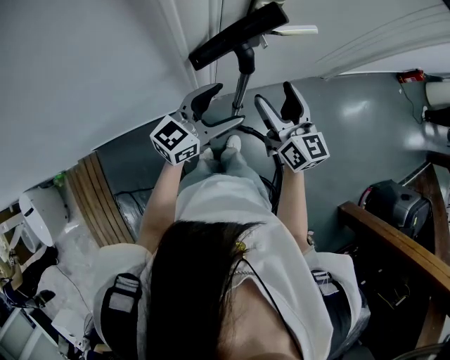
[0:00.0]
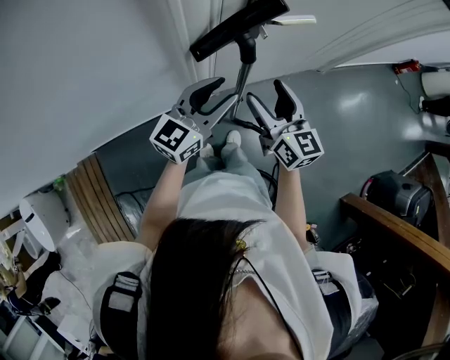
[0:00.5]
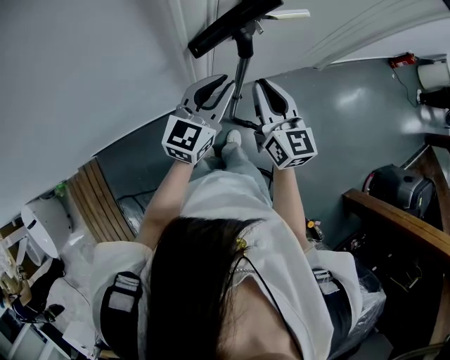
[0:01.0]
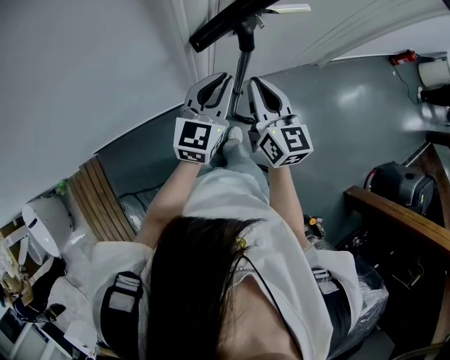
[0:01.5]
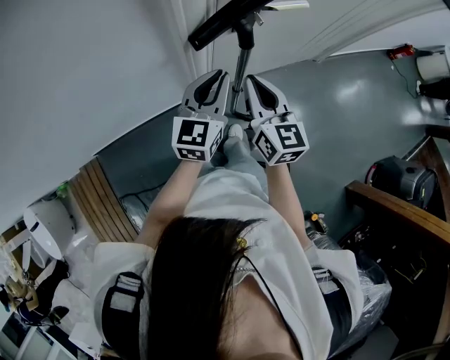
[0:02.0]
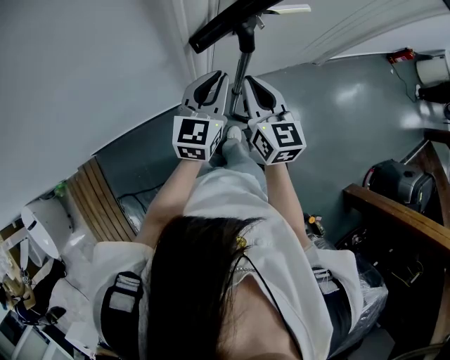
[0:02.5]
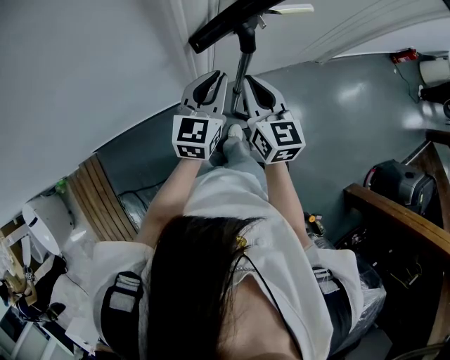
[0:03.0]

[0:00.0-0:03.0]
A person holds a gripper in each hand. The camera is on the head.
0:00.0 to 0:01.5: The right gripper is displaced backward by about 5 cm, and closes. Meanwhile the left gripper rotates approximately 30 degrees, and closes.
0:01.5 to 0:03.0: There are only small adjustments of the grippers.

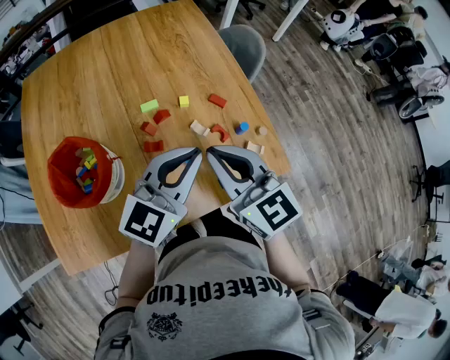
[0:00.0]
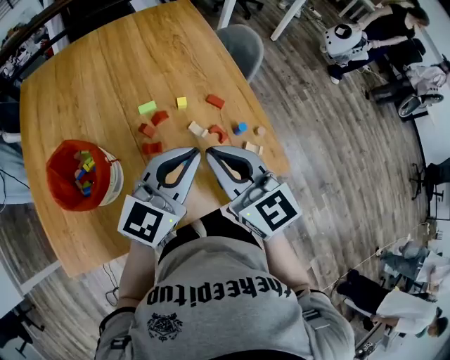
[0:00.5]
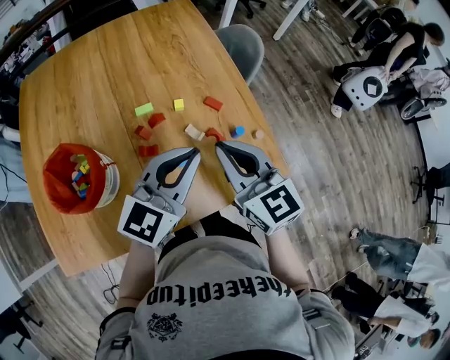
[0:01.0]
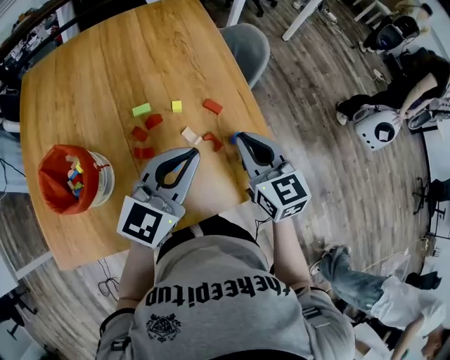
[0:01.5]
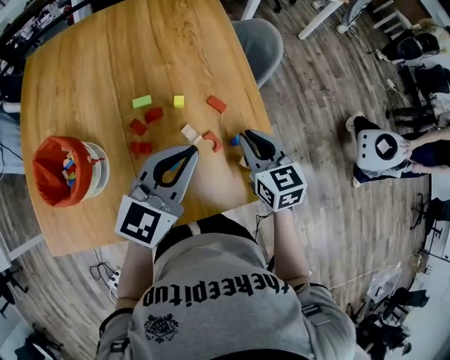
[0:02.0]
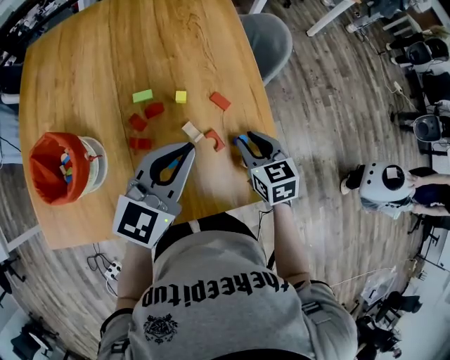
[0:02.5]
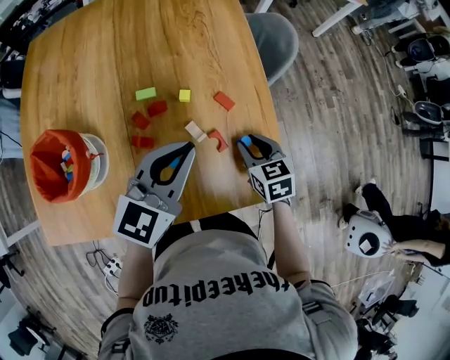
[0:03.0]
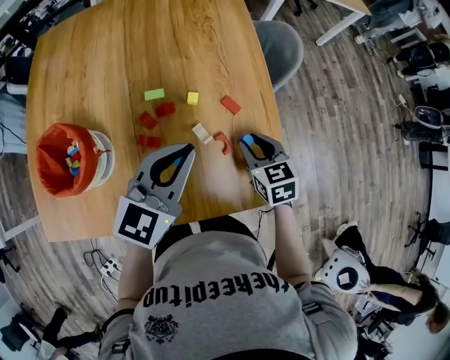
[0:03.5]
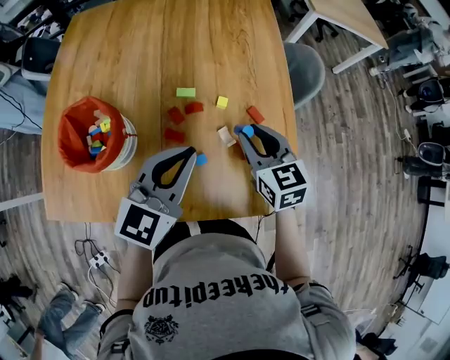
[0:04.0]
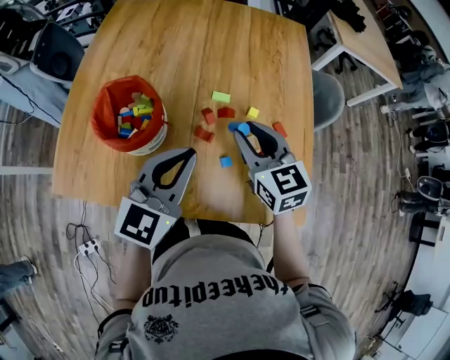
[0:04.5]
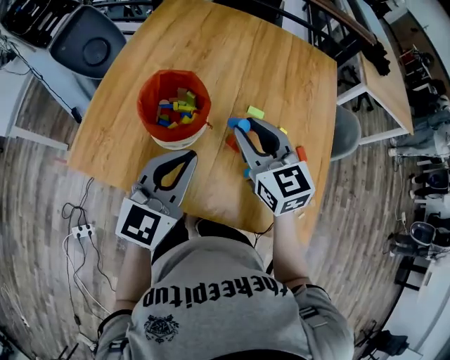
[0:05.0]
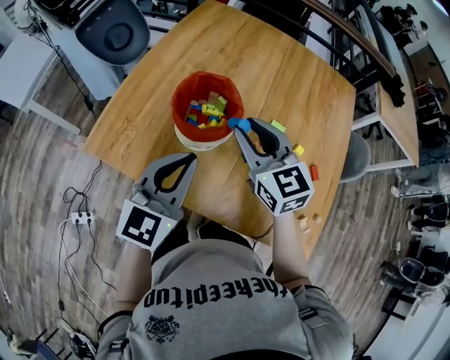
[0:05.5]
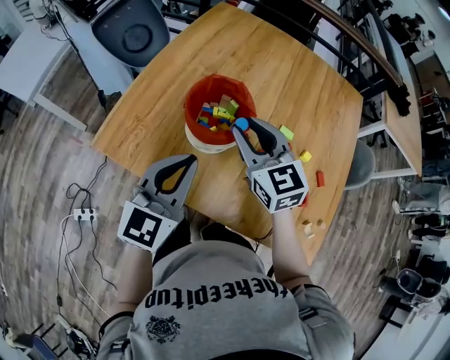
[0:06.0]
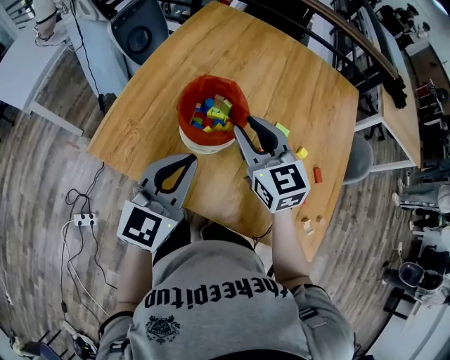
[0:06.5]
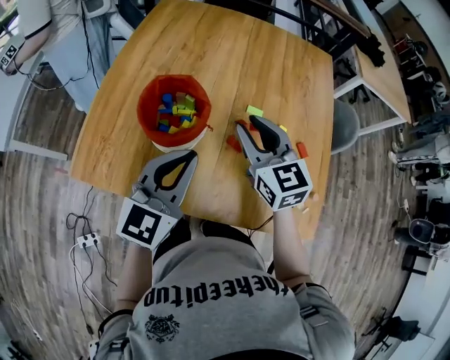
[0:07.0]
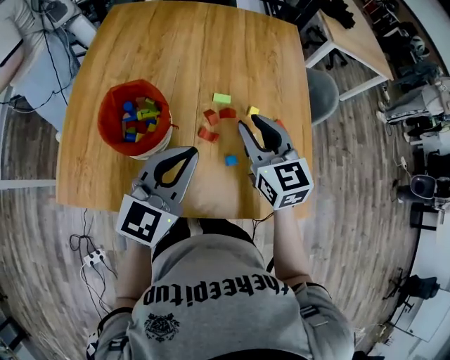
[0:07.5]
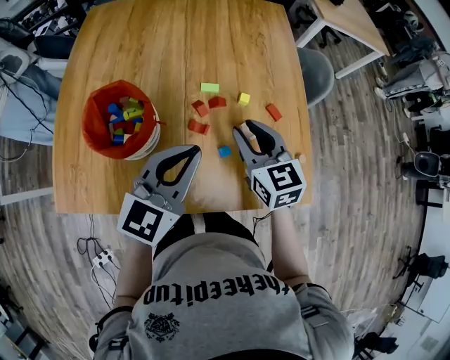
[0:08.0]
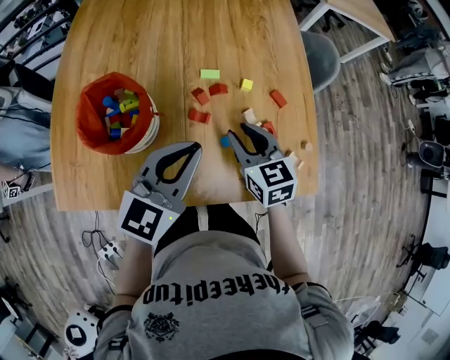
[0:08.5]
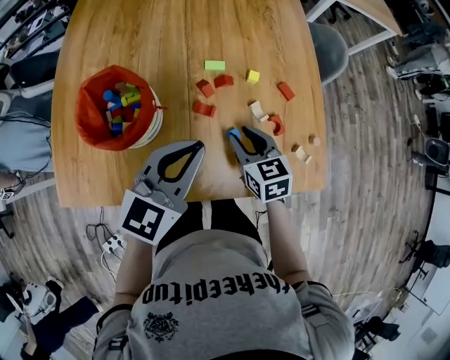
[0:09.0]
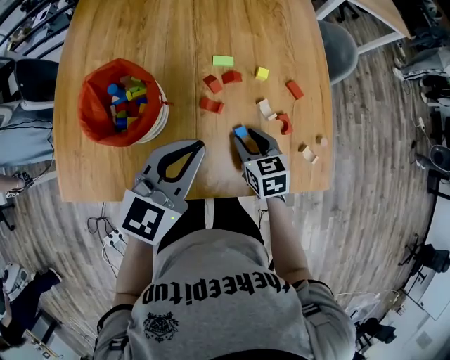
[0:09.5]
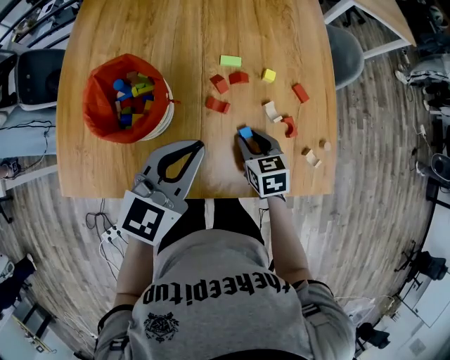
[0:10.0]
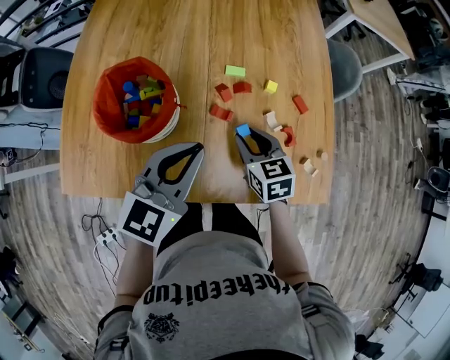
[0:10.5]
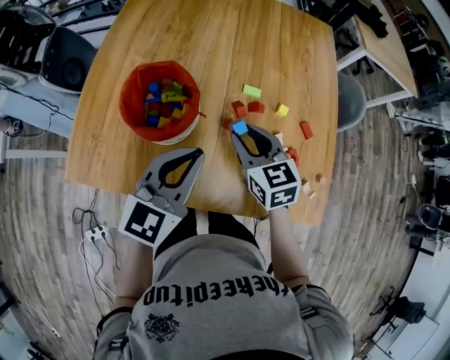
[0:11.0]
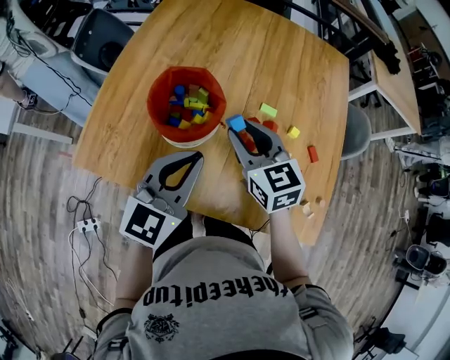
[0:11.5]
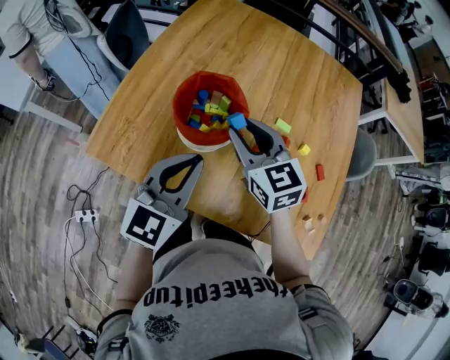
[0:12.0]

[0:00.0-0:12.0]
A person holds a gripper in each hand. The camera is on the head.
0:00.0 to 0:02.0: The left gripper moves forward, approximately 5 cm; the right gripper goes some 20 cm to the right, downward and forward.
0:02.0 to 0:04.0: Both grippers travel together to the left, about 10 cm. The right gripper goes downward and returns, roughly 10 cm each way.
0:04.0 to 0:06.0: The left gripper changes place by about 25 cm, and turns by approximately 30 degrees. Meanwhile the right gripper ends up some 35 cm from where it was, and changes its angle by about 40 degrees.
0:06.0 to 0:08.0: The right gripper ends up about 25 cm from where it was, and swivels roughly 30 degrees; the left gripper moves about 20 cm, and rotates approximately 30 degrees.
0:08.0 to 0:10.0: The right gripper heads downward, covering some 20 cm, and swivels some 30 degrees; the left gripper moves some 5 cm.
0:10.0 to 0:12.0: The right gripper moves roughly 30 cm, and turns by roughly 40 degrees; the left gripper changes place by some 15 cm, and changes its angle by some 30 degrees.

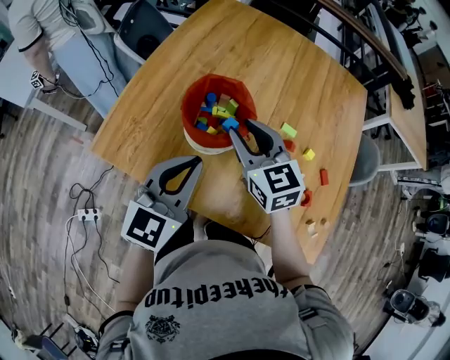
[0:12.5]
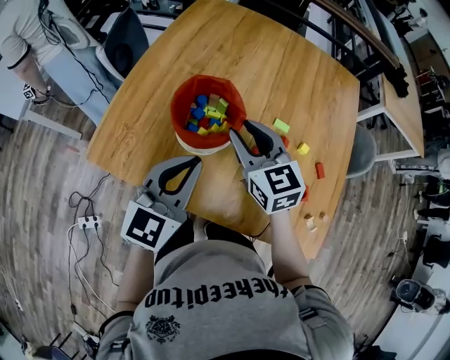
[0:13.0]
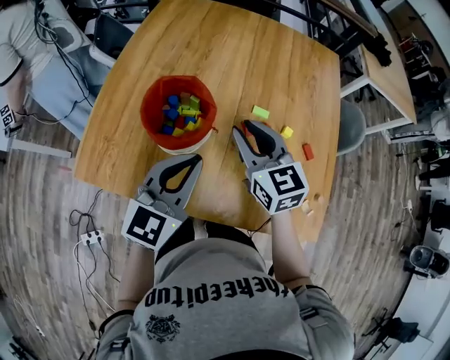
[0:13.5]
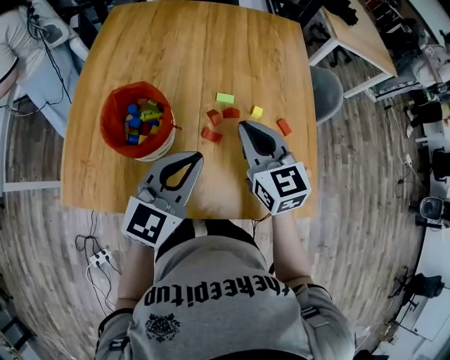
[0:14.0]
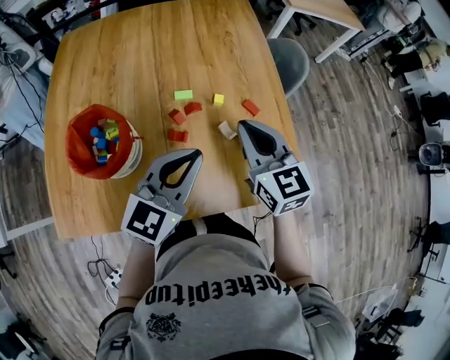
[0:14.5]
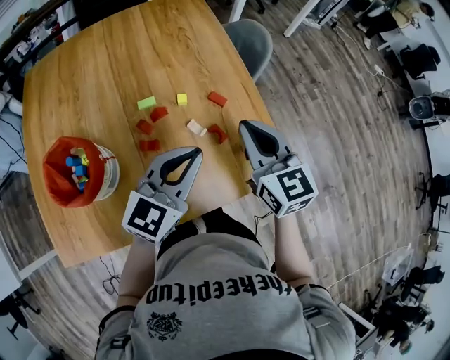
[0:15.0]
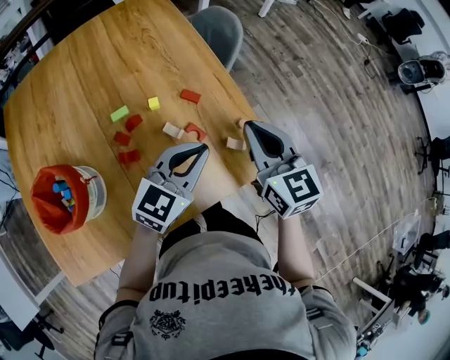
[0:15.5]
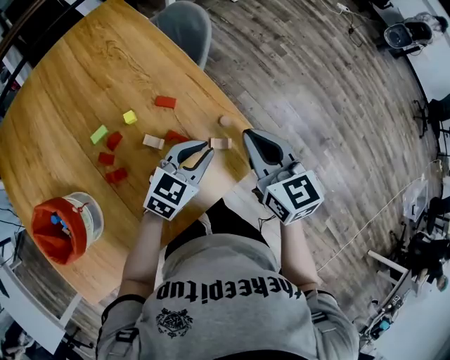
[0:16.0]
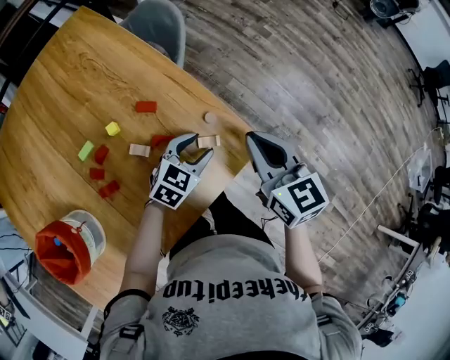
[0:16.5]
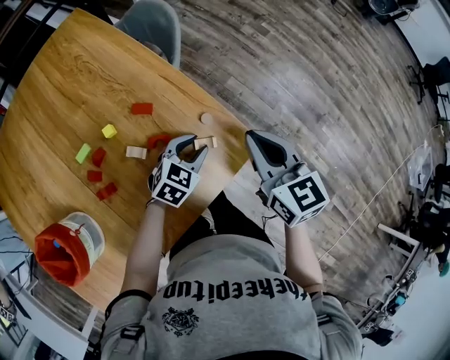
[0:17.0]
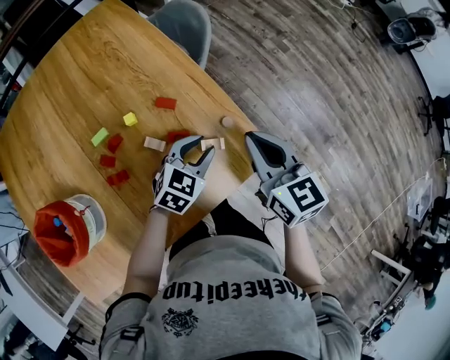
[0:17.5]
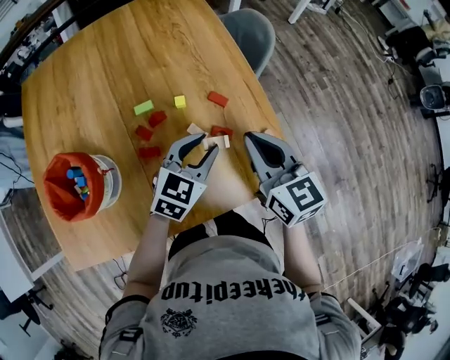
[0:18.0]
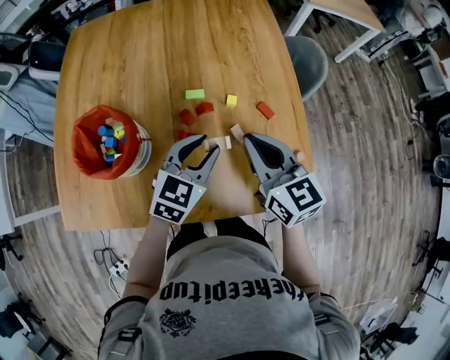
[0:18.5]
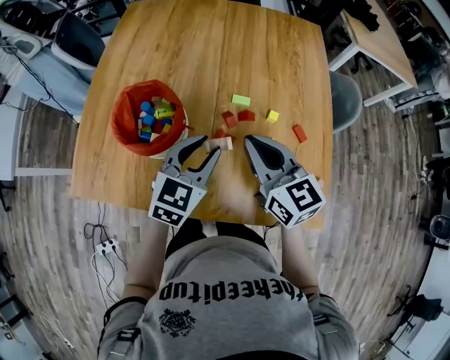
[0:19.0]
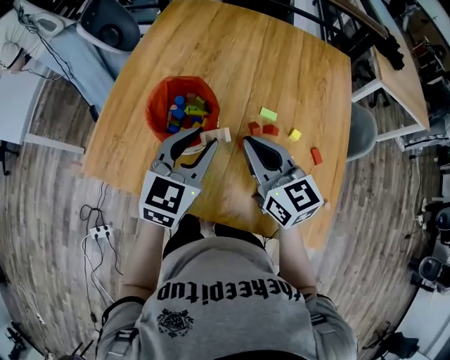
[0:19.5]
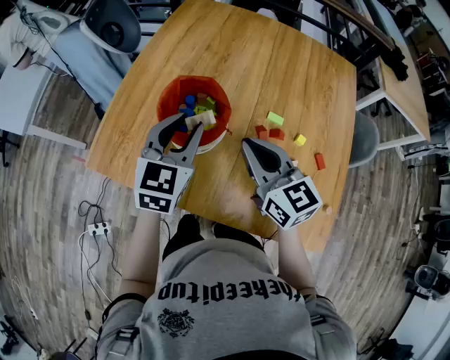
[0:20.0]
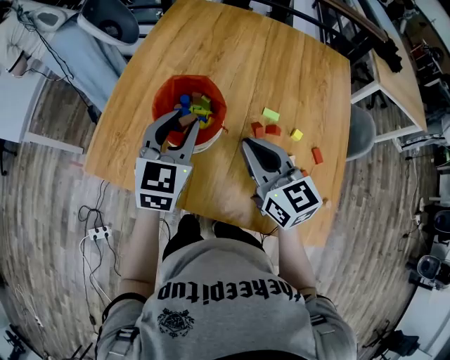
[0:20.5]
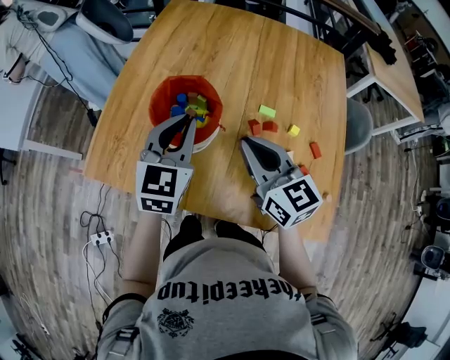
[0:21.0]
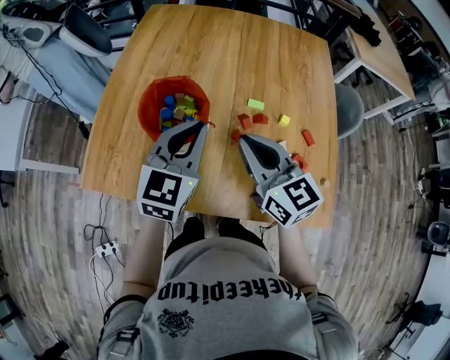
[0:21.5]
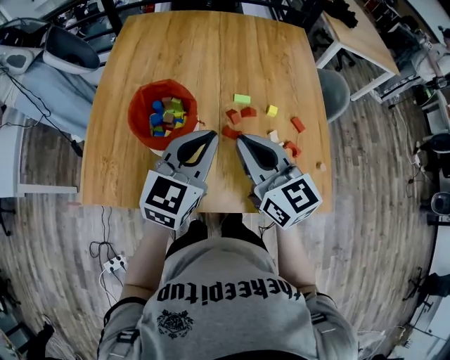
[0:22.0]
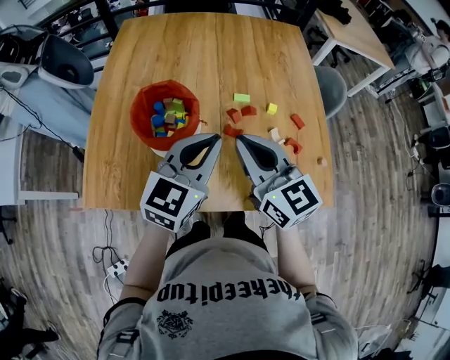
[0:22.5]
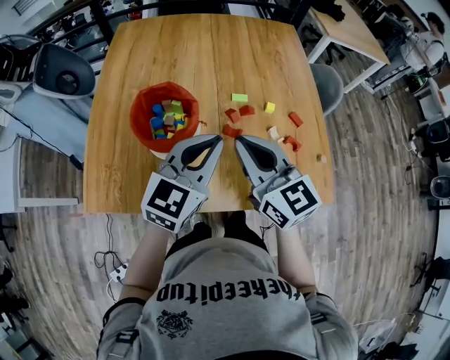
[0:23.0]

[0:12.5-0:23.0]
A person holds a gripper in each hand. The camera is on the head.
0:12.5 to 0:14.5: The right gripper ends up about 30 cm from where it was, changes its angle by some 40 degrees, and closes; the left gripper moves approximately 25 cm, and rotates roughly 40 degrees.
0:14.5 to 0:16.5: The left gripper changes place by roughly 35 cm, turns by approximately 50 degrees, and opens; the right gripper changes place by about 25 cm, and rotates some 40 degrees.
0:16.5 to 0:19.0: The right gripper shifts by about 35 cm, and turns by some 60 degrees; the left gripper ends up about 35 cm from where it was, and swivels roughly 60 degrees.
0:19.0 to 0:21.0: The right gripper goes some 10 cm to the left. The left gripper shifts roughly 15 cm to the left and upward, changes its angle by approximately 20 degrees, and closes its fingers.
0:21.0 to 0:23.0: The right gripper shifts by approximately 5 cm. Meanwhile the left gripper moves to the right and backward, about 10 cm, and swivels approximately 30 degrees.

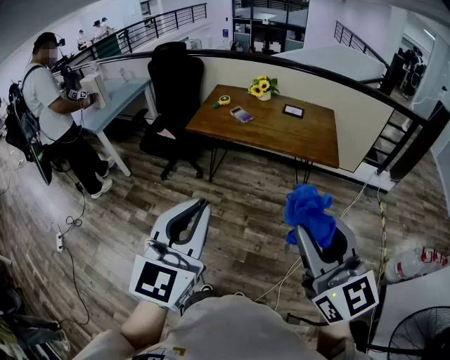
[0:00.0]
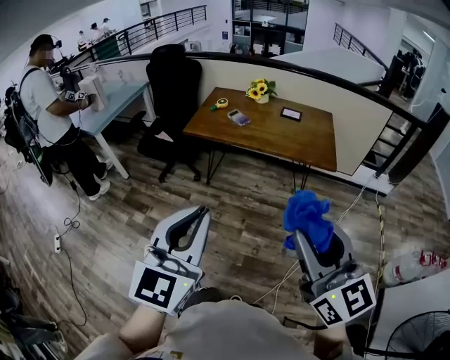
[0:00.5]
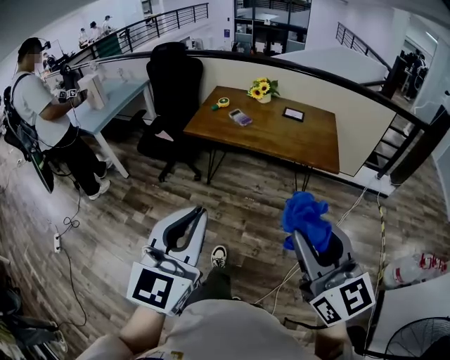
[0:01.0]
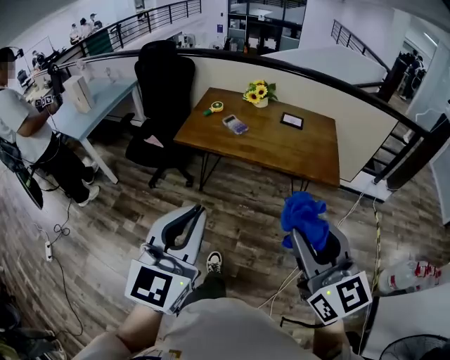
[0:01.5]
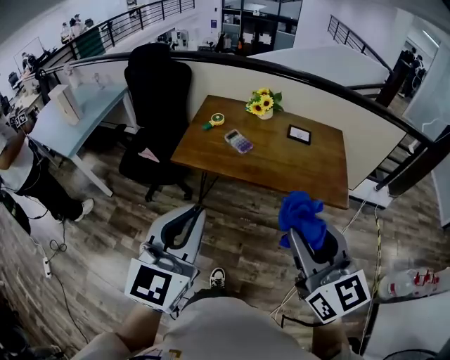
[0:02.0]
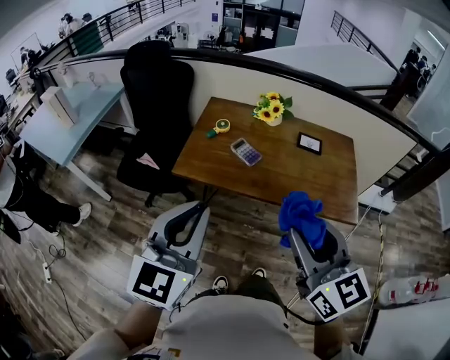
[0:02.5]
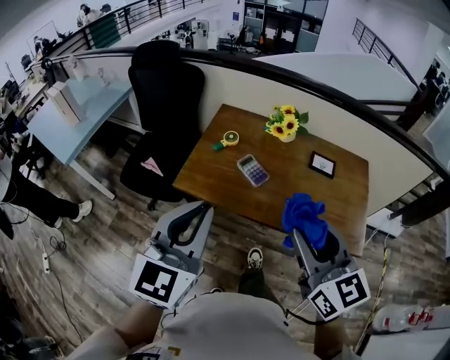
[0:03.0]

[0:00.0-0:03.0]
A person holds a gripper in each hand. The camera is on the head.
0:00.0 to 0:01.5: Both grippers move forward, roughly 15 cm.
0:01.5 to 0:03.0: Both grippers move forward, about 40 cm.
